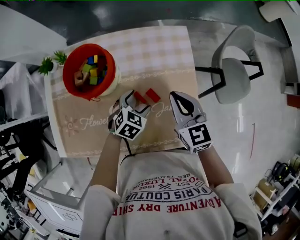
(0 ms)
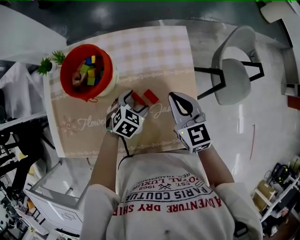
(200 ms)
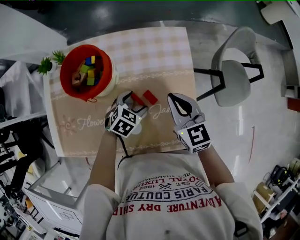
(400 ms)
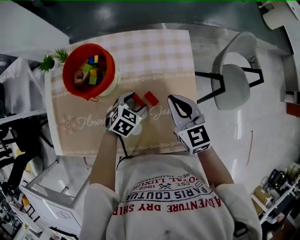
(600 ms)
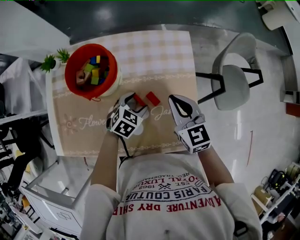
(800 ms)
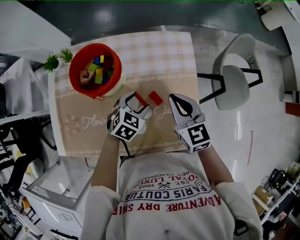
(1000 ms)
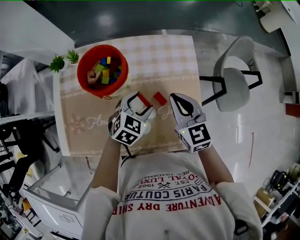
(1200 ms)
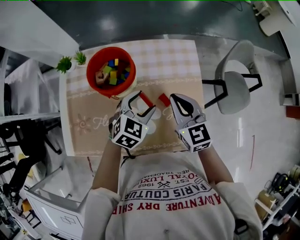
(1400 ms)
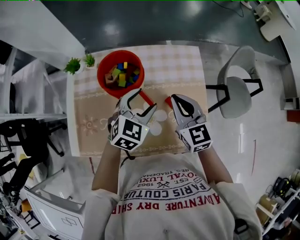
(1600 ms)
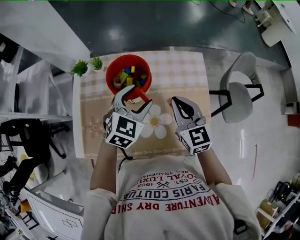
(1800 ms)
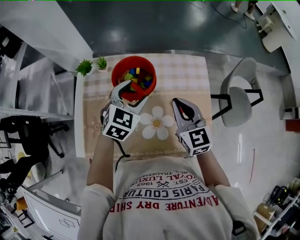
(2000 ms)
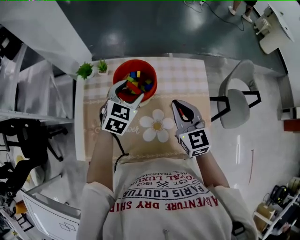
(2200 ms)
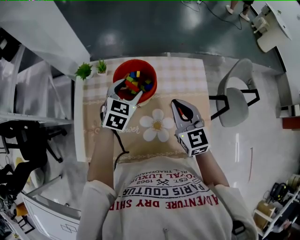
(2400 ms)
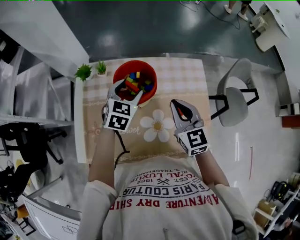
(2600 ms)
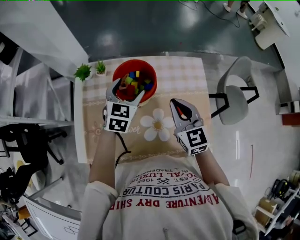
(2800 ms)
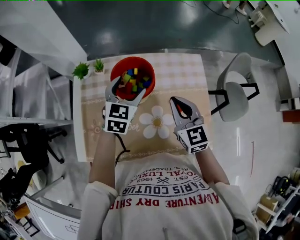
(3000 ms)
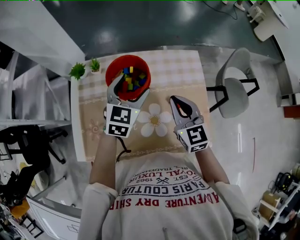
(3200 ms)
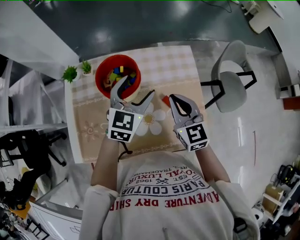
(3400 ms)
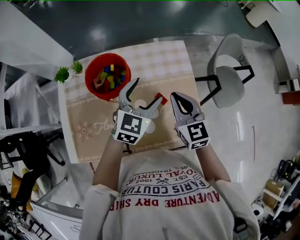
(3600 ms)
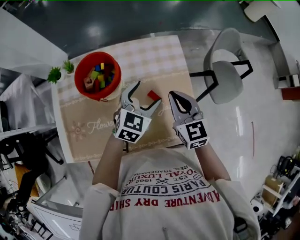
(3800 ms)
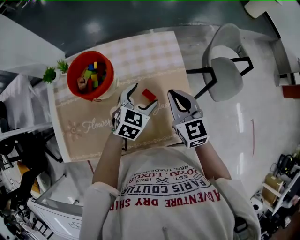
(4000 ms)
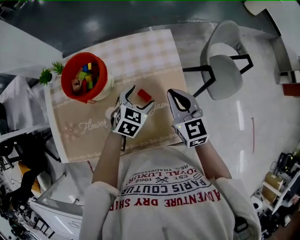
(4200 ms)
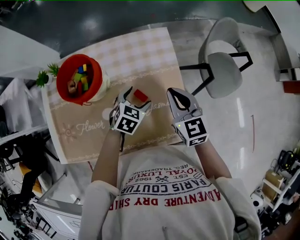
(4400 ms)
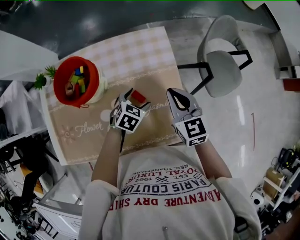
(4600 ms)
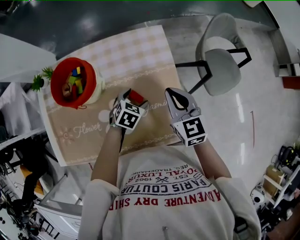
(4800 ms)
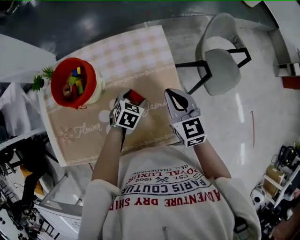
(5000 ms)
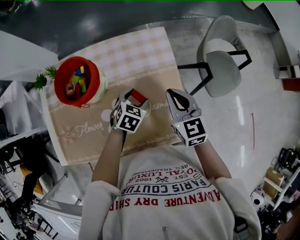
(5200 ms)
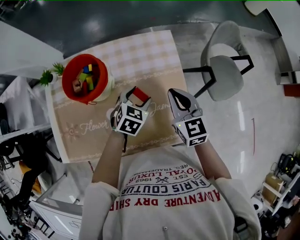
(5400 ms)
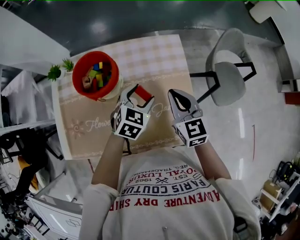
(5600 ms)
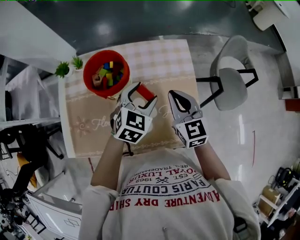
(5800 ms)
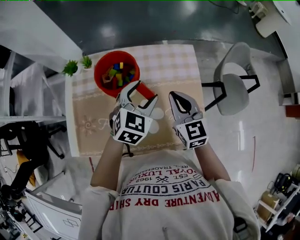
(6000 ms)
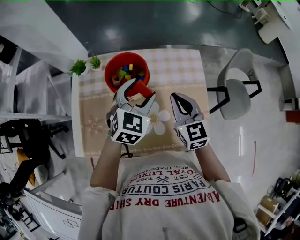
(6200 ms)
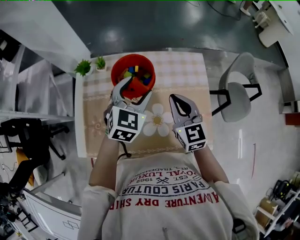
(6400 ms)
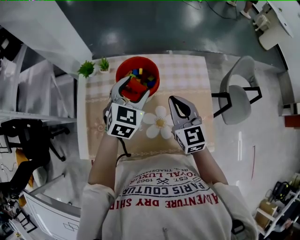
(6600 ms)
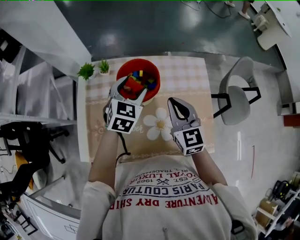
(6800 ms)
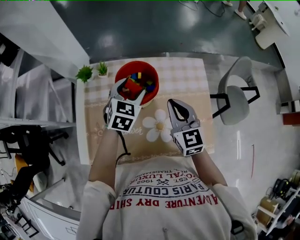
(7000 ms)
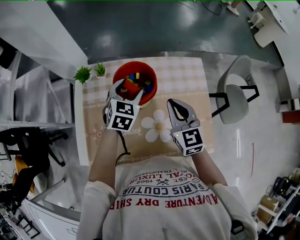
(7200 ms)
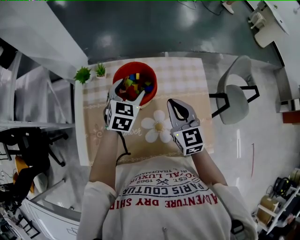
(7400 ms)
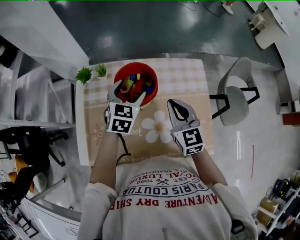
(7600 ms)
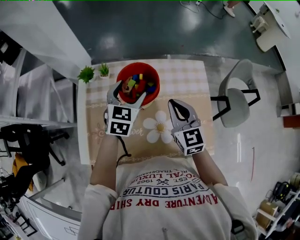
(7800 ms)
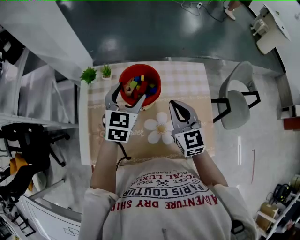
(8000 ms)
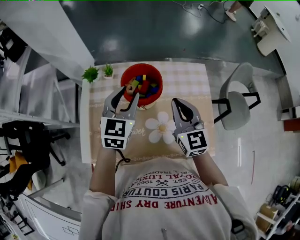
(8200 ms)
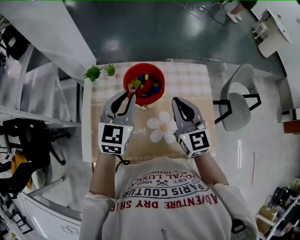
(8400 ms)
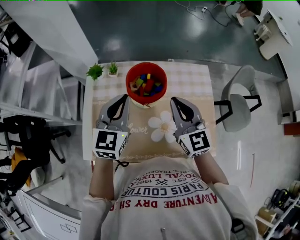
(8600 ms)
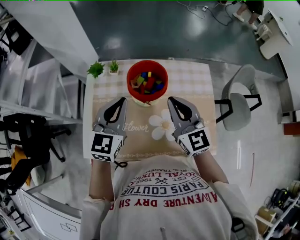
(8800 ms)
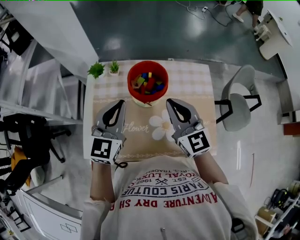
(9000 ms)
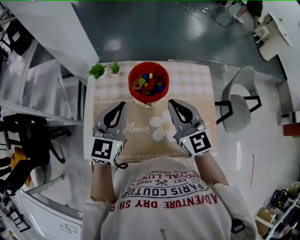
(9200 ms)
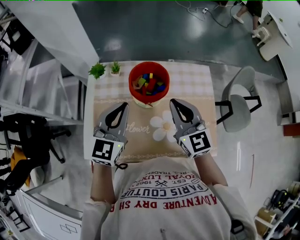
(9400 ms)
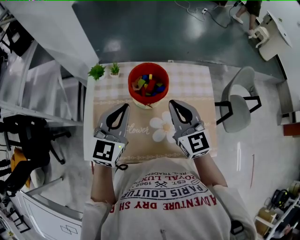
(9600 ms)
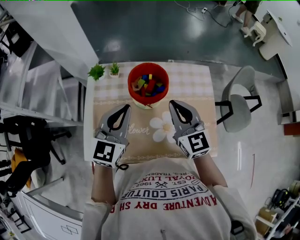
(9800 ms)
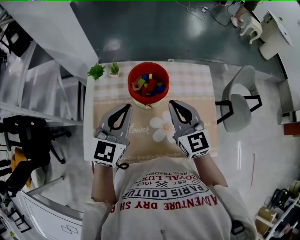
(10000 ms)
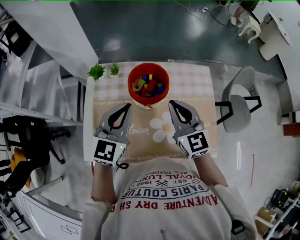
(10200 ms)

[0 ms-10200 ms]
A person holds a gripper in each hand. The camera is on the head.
0 ms to 1400 ms: The left gripper travels upward by about 10 cm, while the right gripper heads to the left, covering roughly 5 cm.
1400 ms to 3000 ms: The left gripper goes some 20 cm to the left, forward and upward, and rotates some 20 degrees, while the right gripper heads to the left, covering about 10 cm.
3000 ms to 4400 ms: The right gripper moves to the right, some 20 cm. The left gripper goes about 30 cm to the right and downward, and rotates about 30 degrees.
4400 ms to 5800 ms: The right gripper moves to the left, roughly 10 cm, while the left gripper heads upward and to the left, covering some 15 cm.
5800 ms to 7200 ms: The right gripper is displaced to the left by about 10 cm. Meanwhile the left gripper shifts roughly 20 cm to the left and forward.
7200 ms to 8800 ms: The right gripper moves upward and to the left, about 10 cm, while the left gripper moves upward, backward and to the left, some 15 cm, turns by roughly 20 degrees, and closes.
8800 ms to 10200 ms: The grippers move only a little.

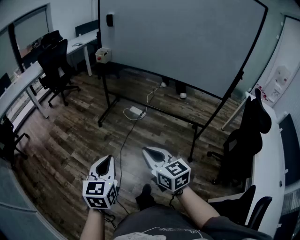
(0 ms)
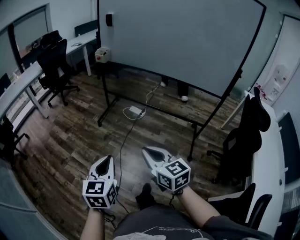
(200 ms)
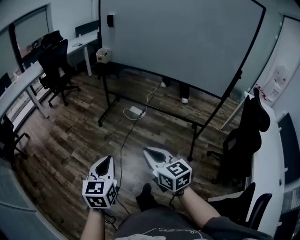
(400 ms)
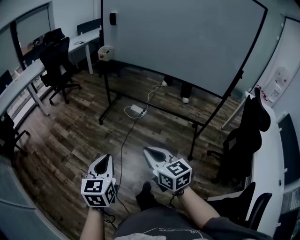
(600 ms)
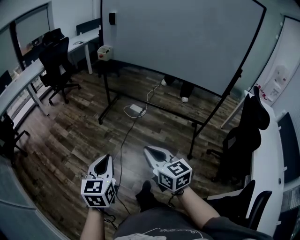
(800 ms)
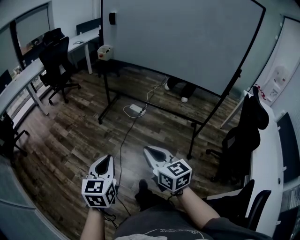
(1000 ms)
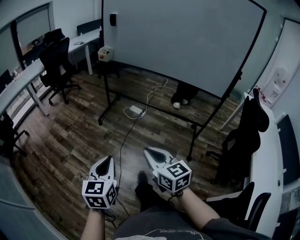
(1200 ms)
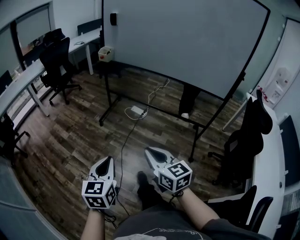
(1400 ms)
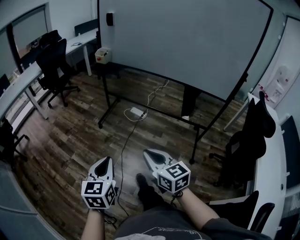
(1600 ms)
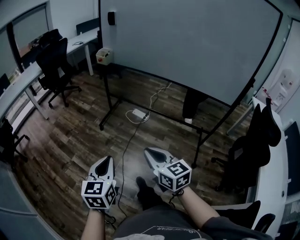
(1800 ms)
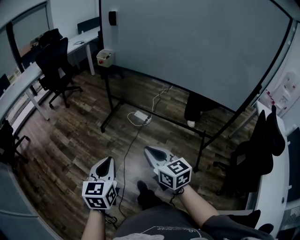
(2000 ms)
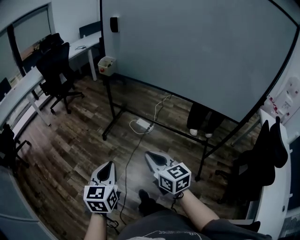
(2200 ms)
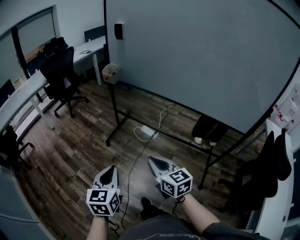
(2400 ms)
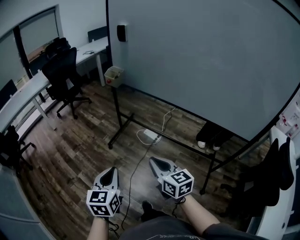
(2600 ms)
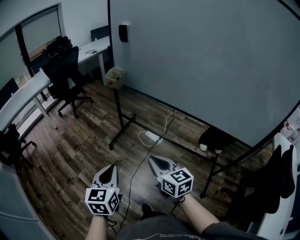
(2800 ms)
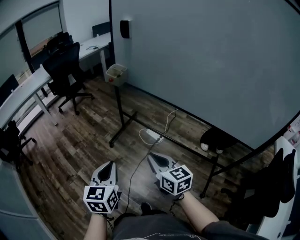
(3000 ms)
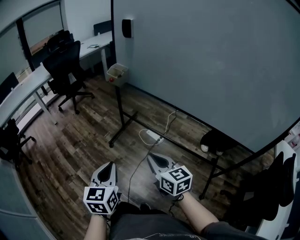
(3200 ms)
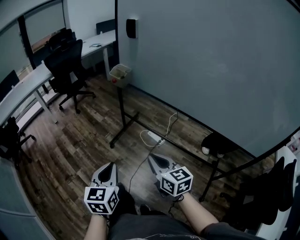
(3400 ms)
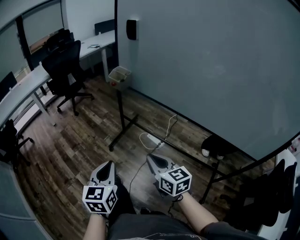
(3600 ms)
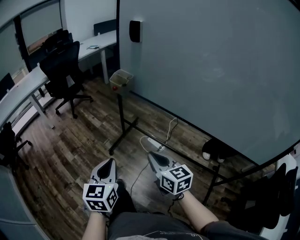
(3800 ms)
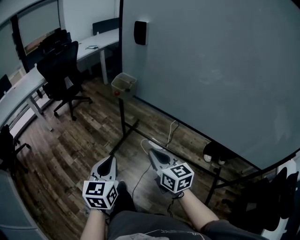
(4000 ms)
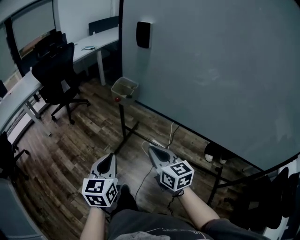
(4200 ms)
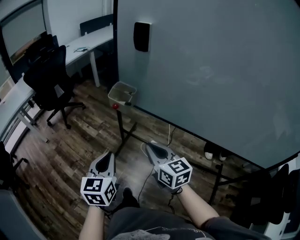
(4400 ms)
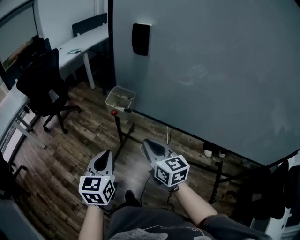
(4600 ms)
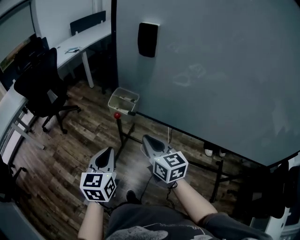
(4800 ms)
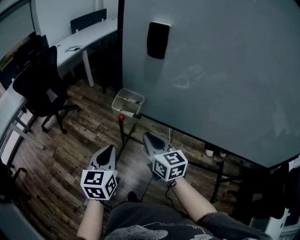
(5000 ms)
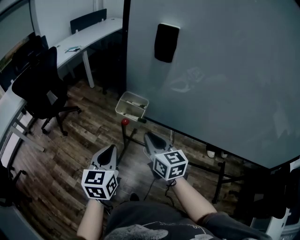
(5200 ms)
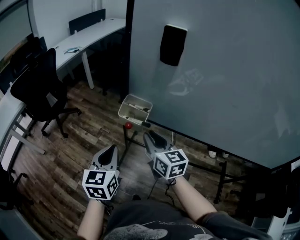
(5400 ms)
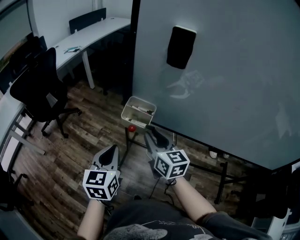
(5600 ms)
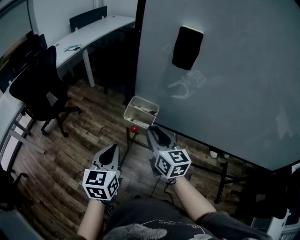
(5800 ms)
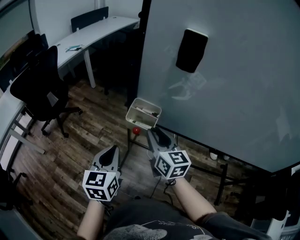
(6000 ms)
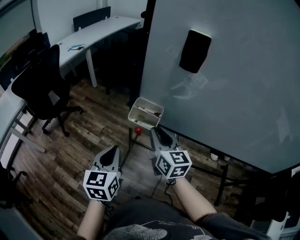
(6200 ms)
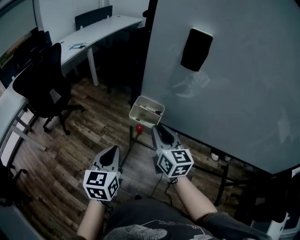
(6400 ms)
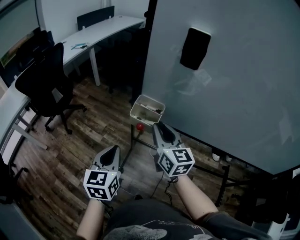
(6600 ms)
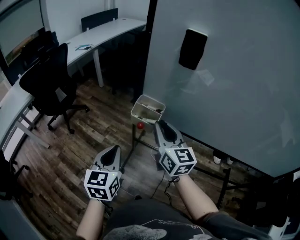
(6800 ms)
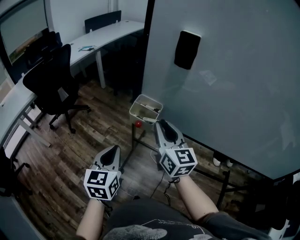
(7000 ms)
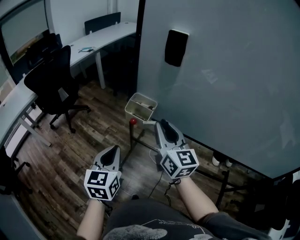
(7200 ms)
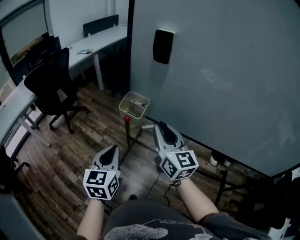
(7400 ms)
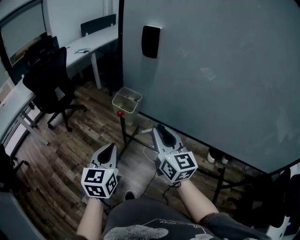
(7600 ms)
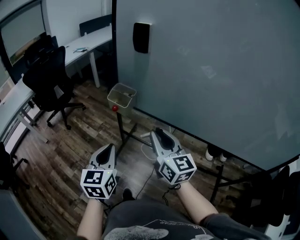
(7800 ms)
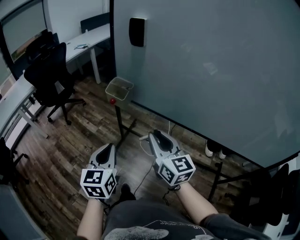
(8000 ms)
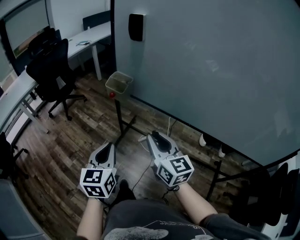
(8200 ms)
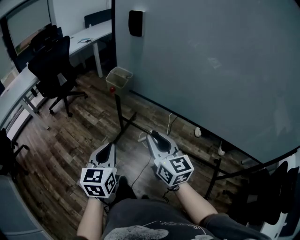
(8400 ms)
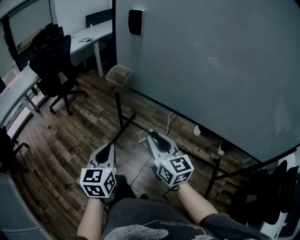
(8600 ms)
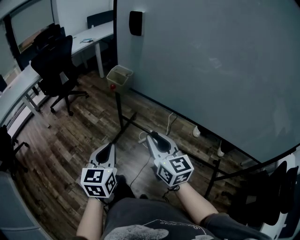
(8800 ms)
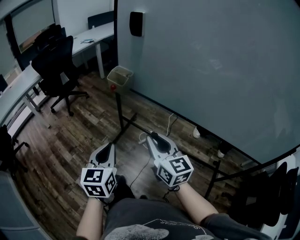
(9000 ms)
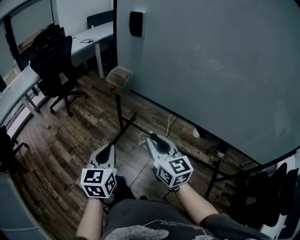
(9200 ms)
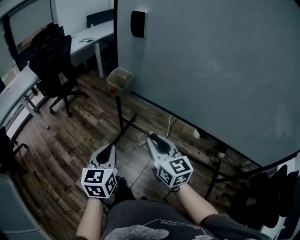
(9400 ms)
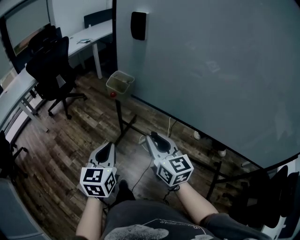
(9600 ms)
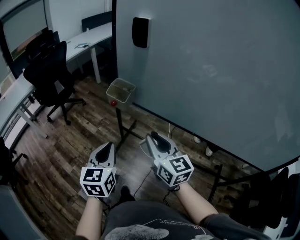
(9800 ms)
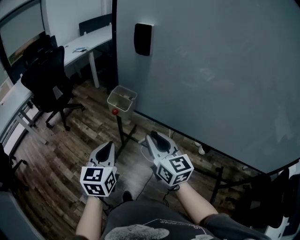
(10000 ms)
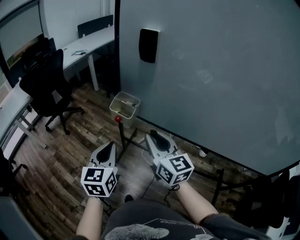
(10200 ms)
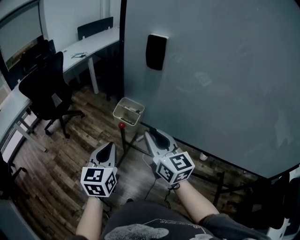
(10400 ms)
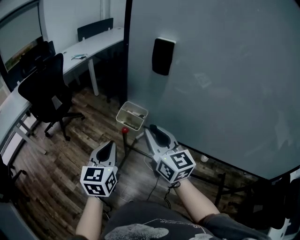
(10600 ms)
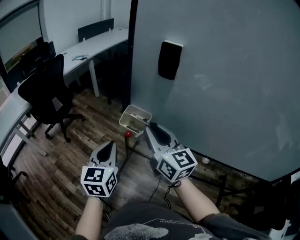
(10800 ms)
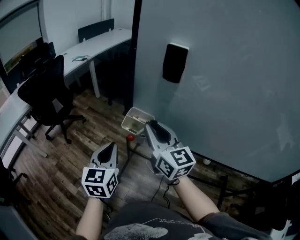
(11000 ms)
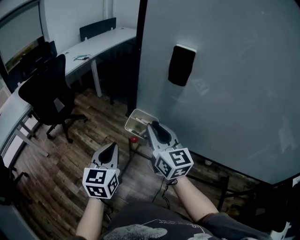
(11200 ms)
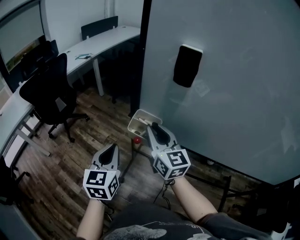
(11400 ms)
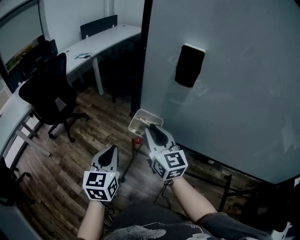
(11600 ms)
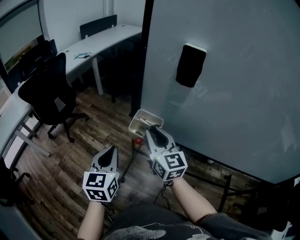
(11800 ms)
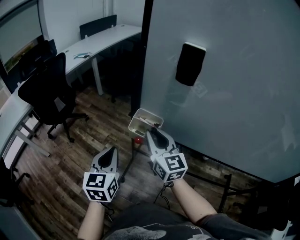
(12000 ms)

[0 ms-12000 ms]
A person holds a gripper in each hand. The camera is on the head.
0 ms to 1600 ms: The grippers stay close to where they were, moving slightly.
1600 ms to 3000 ms: Both grippers travel together forward, approximately 30 cm.
3000 ms to 4400 ms: The grippers both shift forward by about 30 cm.
4400 ms to 6000 ms: The left gripper goes some 20 cm forward and to the left. The right gripper shifts approximately 20 cm forward, and opens up.
6000 ms to 7600 ms: The right gripper moves backward, to the right and upward, approximately 15 cm. The left gripper moves backward and to the right, approximately 15 cm.
7600 ms to 9000 ms: Both grippers travel together backward, some 15 cm.
9000 ms to 10400 ms: The two grippers go about 20 cm forward.
10400 ms to 12000 ms: The grippers both shift forward and to the left by some 10 cm.

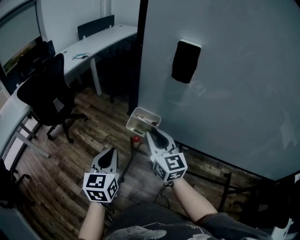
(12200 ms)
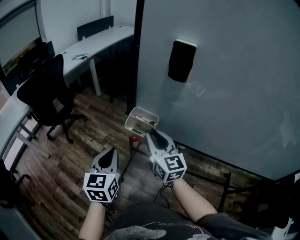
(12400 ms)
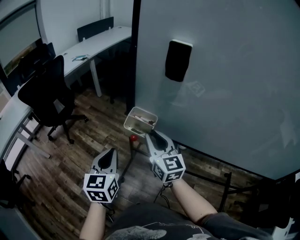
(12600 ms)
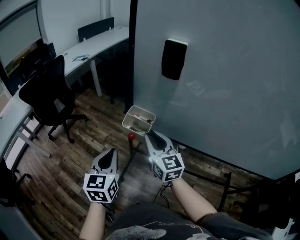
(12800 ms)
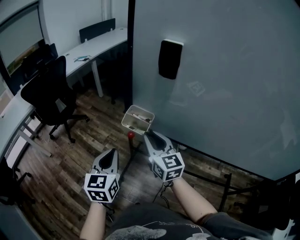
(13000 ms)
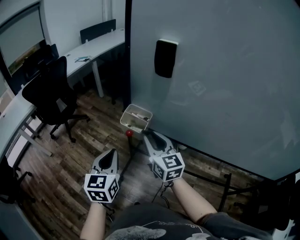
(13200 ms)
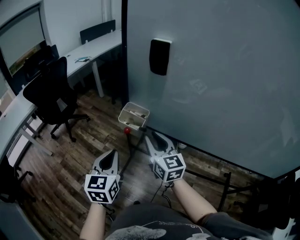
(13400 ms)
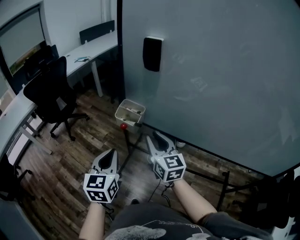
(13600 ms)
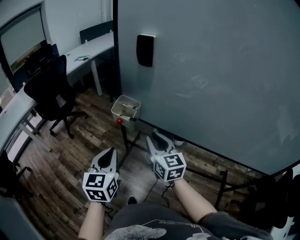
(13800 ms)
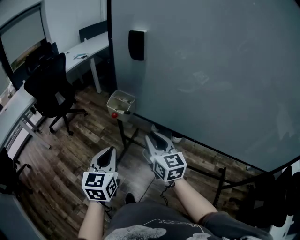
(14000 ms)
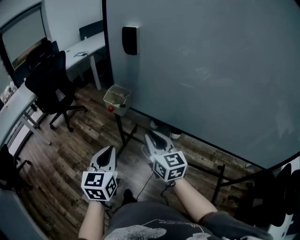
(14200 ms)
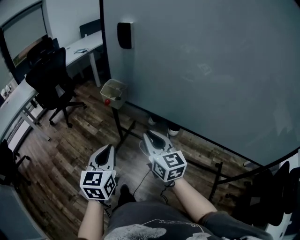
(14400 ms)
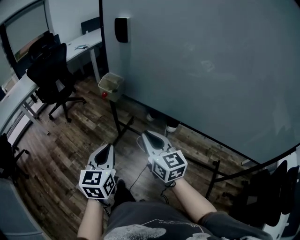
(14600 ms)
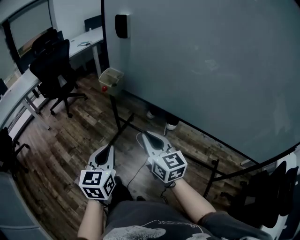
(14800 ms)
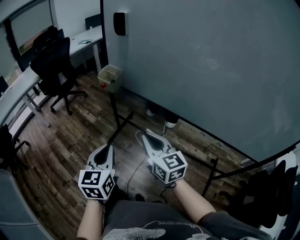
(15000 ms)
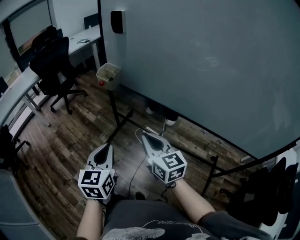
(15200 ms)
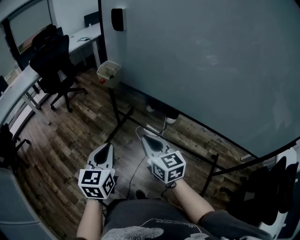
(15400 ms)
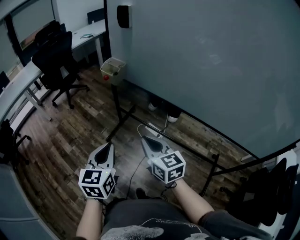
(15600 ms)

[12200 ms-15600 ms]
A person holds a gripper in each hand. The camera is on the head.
12200 ms to 13800 ms: Both grippers move backward and to the right, about 15 cm.
13800 ms to 15600 ms: The grippers both shift backward by some 25 cm.
